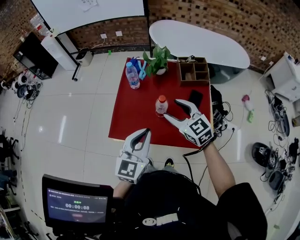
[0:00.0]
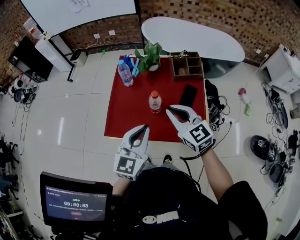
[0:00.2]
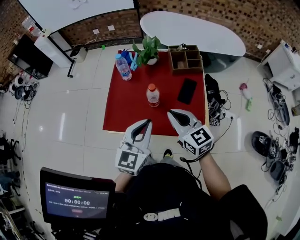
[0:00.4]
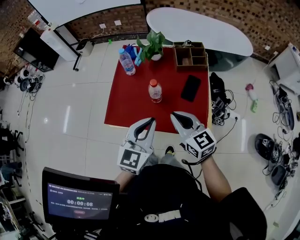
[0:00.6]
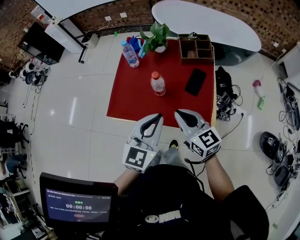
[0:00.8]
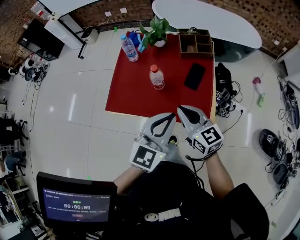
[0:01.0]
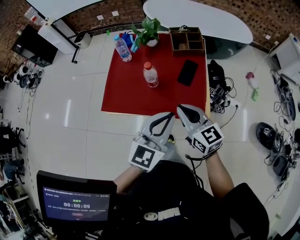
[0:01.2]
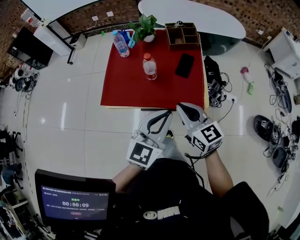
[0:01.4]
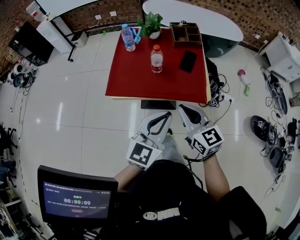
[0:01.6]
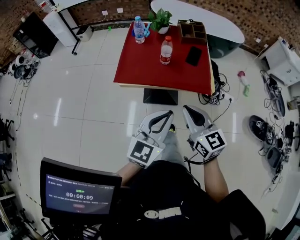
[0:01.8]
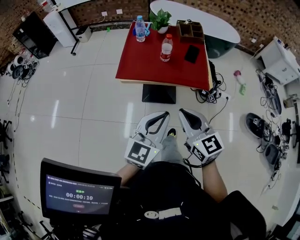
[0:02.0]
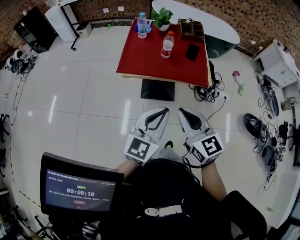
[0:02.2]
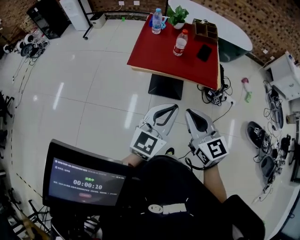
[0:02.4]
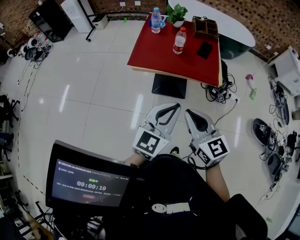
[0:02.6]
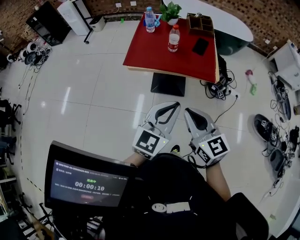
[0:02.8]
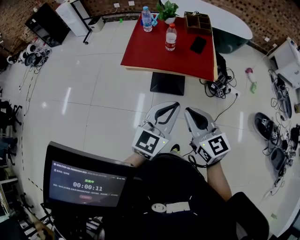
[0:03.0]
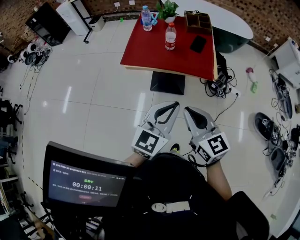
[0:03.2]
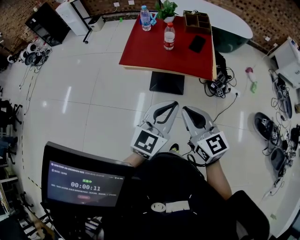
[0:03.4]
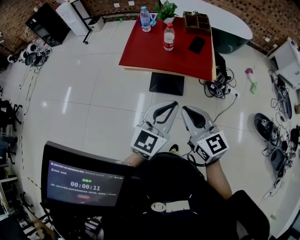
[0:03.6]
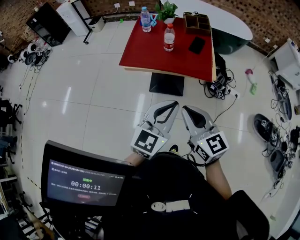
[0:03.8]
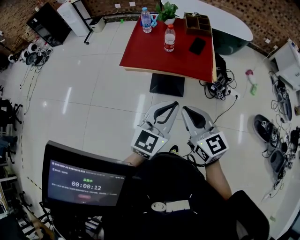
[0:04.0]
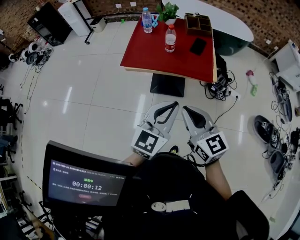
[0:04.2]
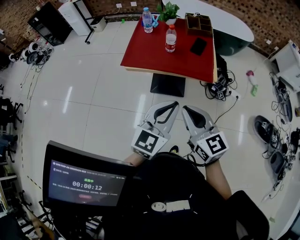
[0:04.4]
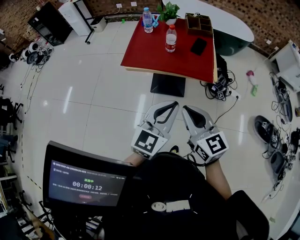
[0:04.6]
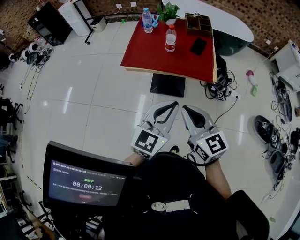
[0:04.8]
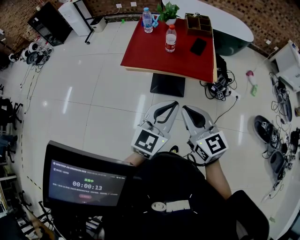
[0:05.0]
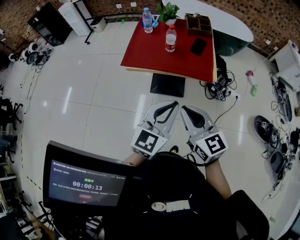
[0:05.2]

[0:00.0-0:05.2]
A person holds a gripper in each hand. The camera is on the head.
0.0 to 1.8 s: Both grippers travel together backward, roughly 30 cm. The right gripper changes its angle by roughly 20 degrees, and closes.
1.8 to 3.4 s: Both grippers move backward, about 10 cm.
3.4 to 5.2 s: Both grippers stay put.

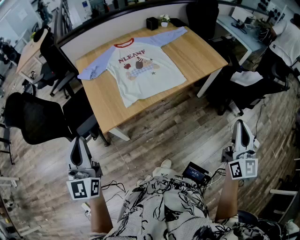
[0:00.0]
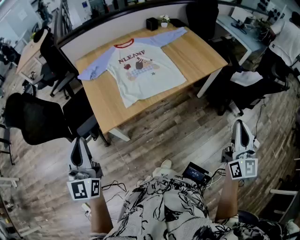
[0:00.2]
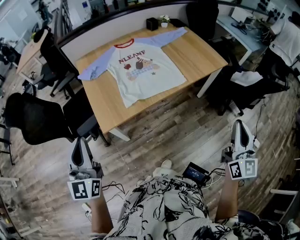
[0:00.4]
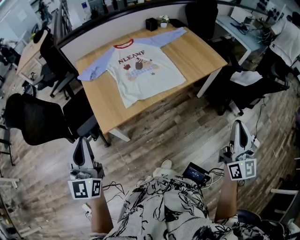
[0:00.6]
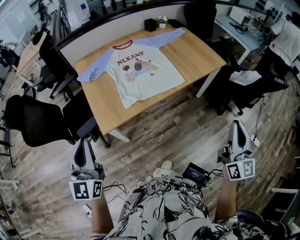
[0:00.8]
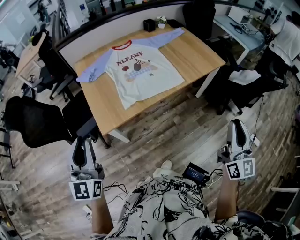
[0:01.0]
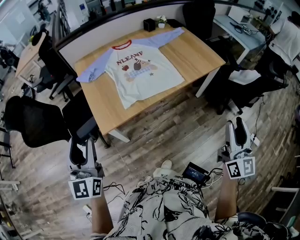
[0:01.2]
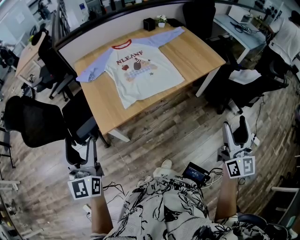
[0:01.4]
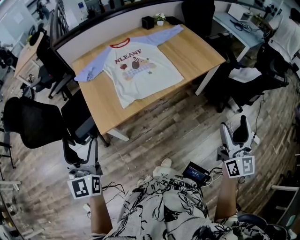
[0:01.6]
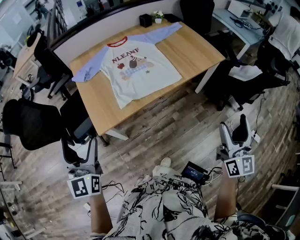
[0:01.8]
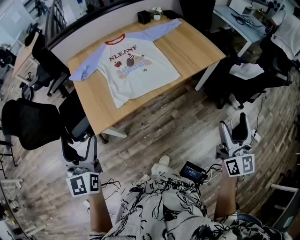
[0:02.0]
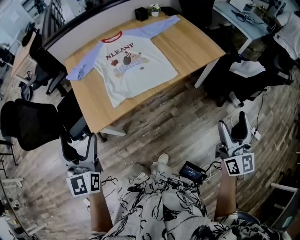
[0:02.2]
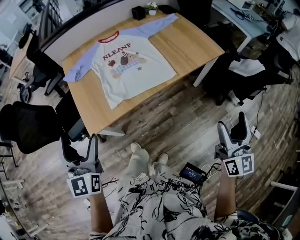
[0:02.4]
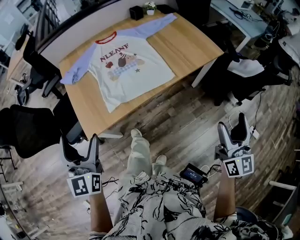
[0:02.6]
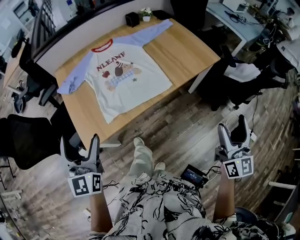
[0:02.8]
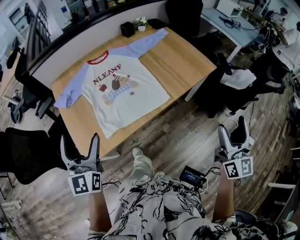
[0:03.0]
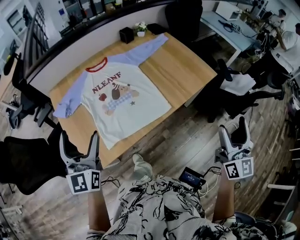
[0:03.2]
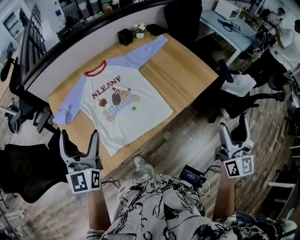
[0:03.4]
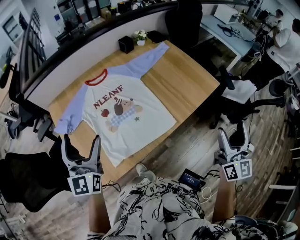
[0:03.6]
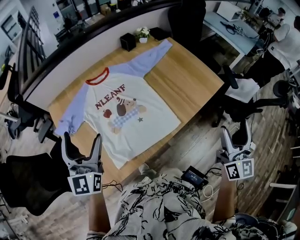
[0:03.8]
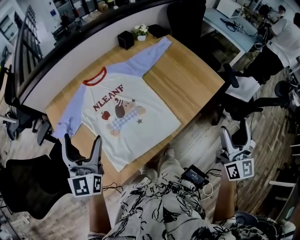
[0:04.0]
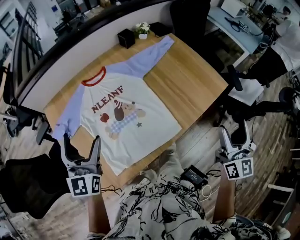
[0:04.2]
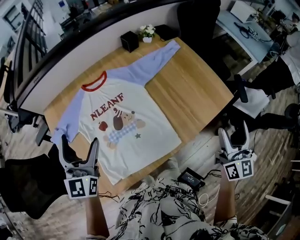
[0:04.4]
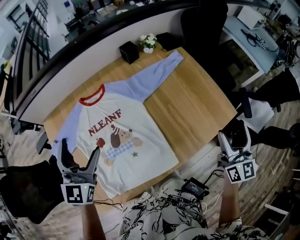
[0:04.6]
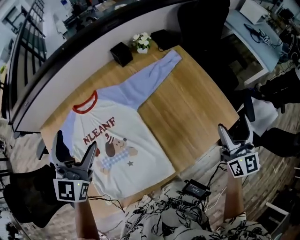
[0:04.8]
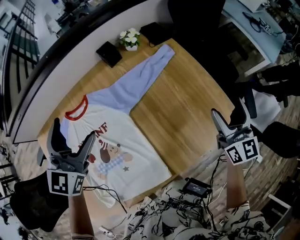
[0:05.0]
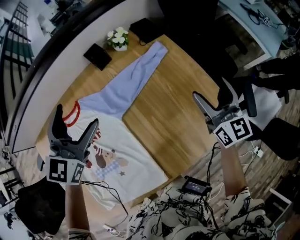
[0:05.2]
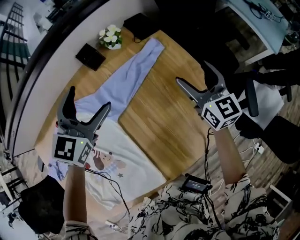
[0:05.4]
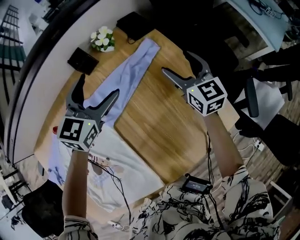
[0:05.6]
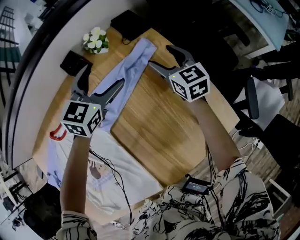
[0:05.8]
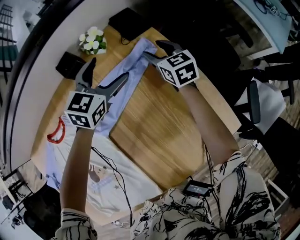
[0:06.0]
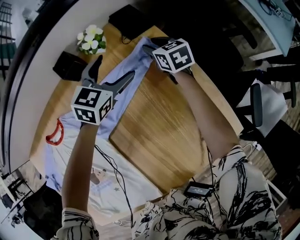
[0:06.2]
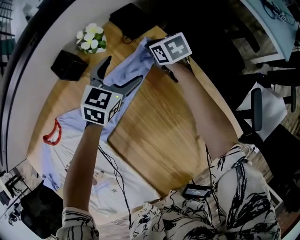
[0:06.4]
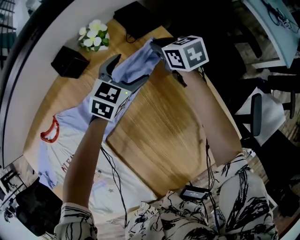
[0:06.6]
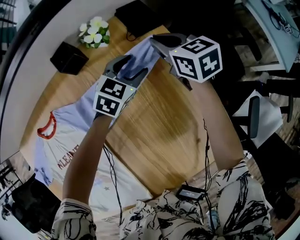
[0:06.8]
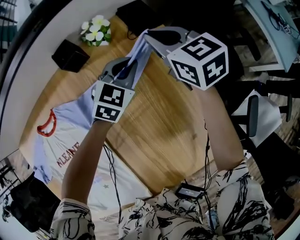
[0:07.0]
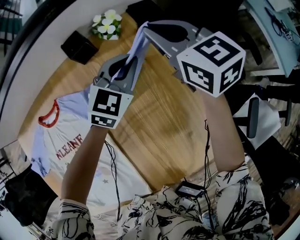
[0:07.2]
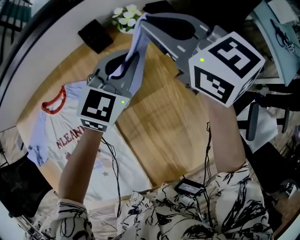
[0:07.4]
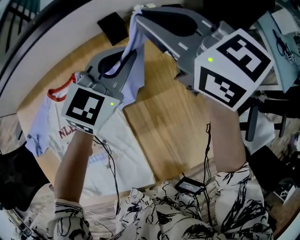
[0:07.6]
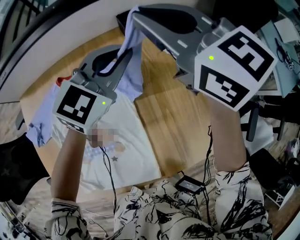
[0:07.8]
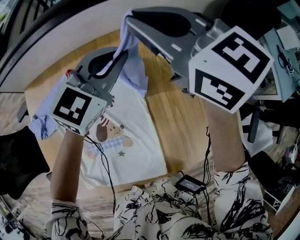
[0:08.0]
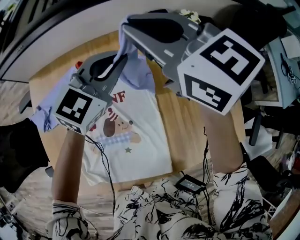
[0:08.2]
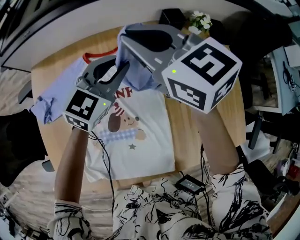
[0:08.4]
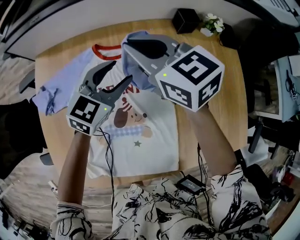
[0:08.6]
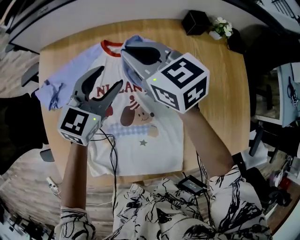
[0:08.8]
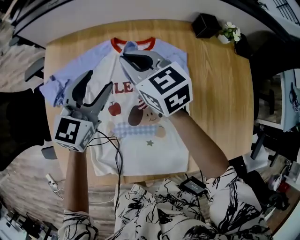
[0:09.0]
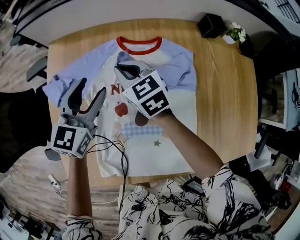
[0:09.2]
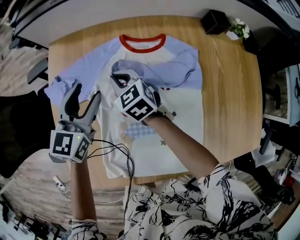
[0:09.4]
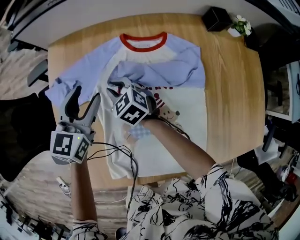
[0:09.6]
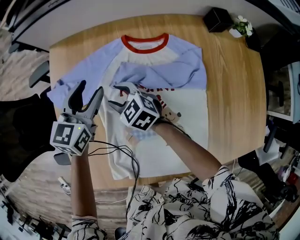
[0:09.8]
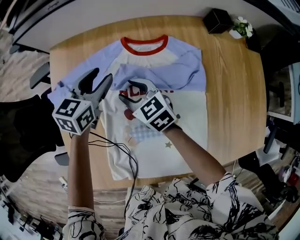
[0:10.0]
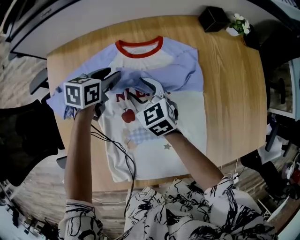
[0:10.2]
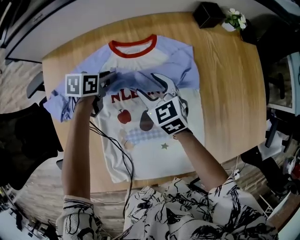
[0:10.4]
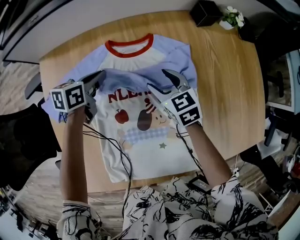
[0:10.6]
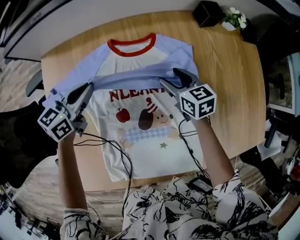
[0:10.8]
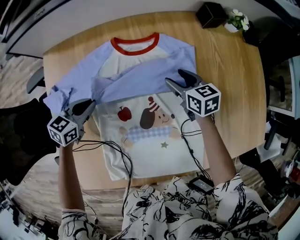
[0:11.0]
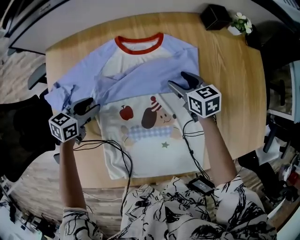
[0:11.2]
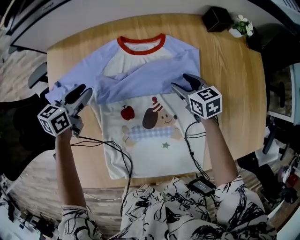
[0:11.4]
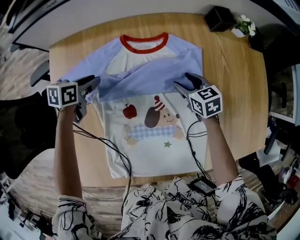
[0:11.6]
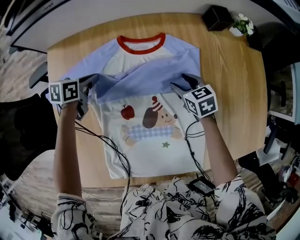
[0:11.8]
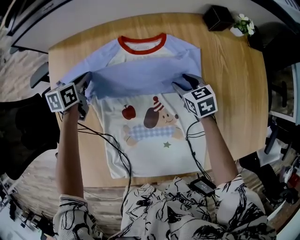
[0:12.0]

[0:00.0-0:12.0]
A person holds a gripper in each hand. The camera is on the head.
0.0 to 1.6 s: The left gripper opens up. The right gripper opens.
1.6 to 3.0 s: The grippers both shift forward and to the right by about 20 cm.
3.0 to 4.4 s: Both grippers travel together forward, some 30 cm.
4.4 to 6.0 s: The pair of grippers is taken forward, some 60 cm. The right gripper is displaced downward by some 30 cm, tilts its fingers about 30 degrees downward, and closes its fingers. The left gripper rotates roughly 40 degrees.
6.0 to 7.6 s: The left gripper travels upward, to the left and backward by approximately 15 cm, and closes. The right gripper travels upward and to the left by some 35 cm, swivels roughly 40 degrees, and closes its fingers.
7.6 to 9.0 s: The pair of grippers is taken to the left, approximately 50 cm. The left gripper swivels roughly 30 degrees, and opens its fingers.
9.0 to 10.4 s: Both grippers travel together downward, roughly 15 cm. The right gripper opens. The left gripper turns by about 50 degrees.
10.4 to 12.0 s: The right gripper moves to the right and downward, about 15 cm; the left gripper is displaced to the left by approximately 10 cm, and moves roughly 15 cm backward and comes back.

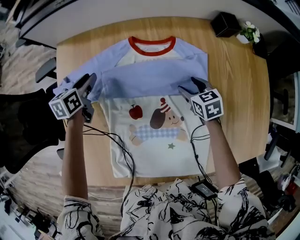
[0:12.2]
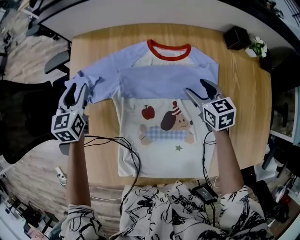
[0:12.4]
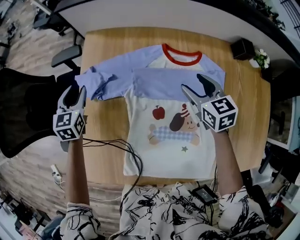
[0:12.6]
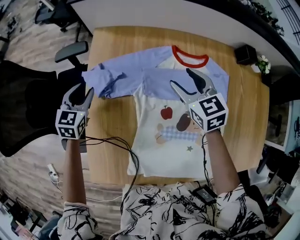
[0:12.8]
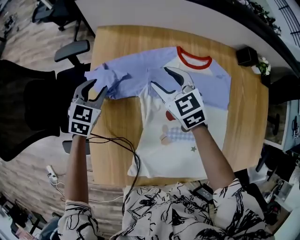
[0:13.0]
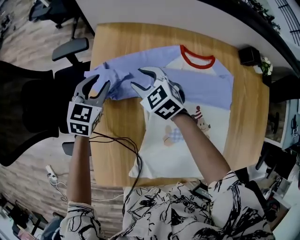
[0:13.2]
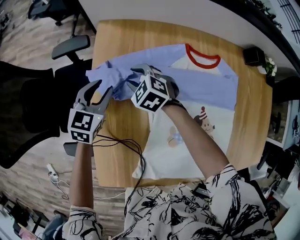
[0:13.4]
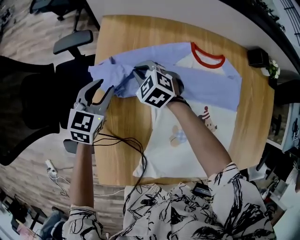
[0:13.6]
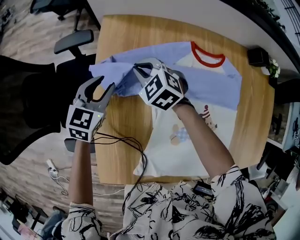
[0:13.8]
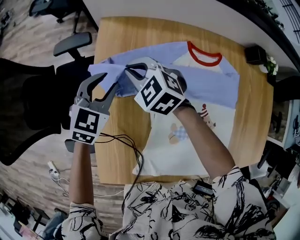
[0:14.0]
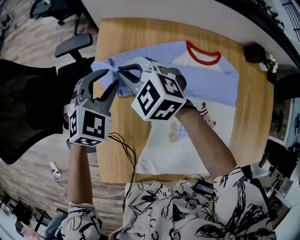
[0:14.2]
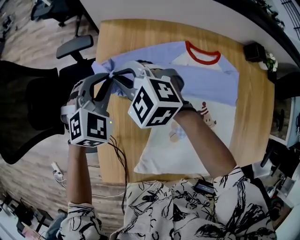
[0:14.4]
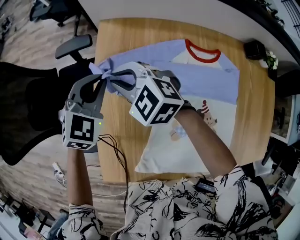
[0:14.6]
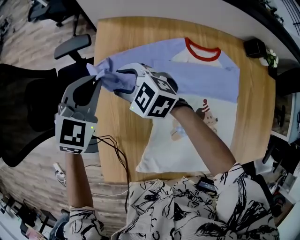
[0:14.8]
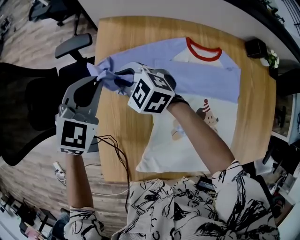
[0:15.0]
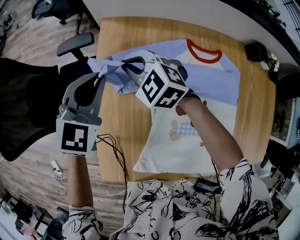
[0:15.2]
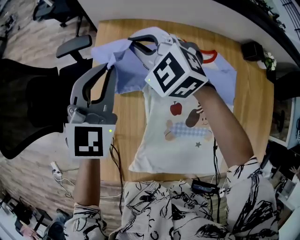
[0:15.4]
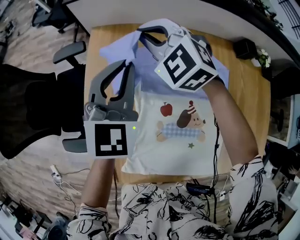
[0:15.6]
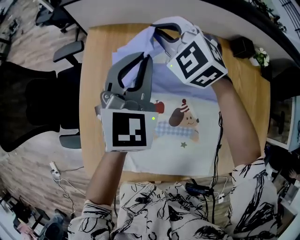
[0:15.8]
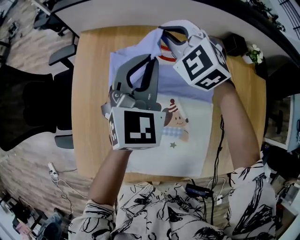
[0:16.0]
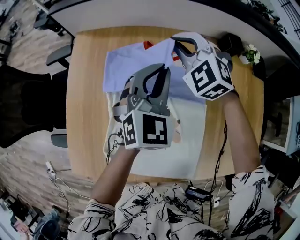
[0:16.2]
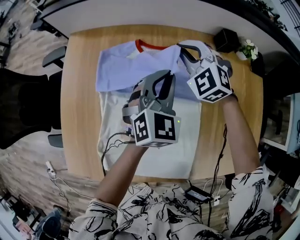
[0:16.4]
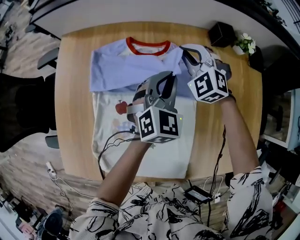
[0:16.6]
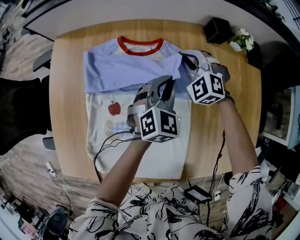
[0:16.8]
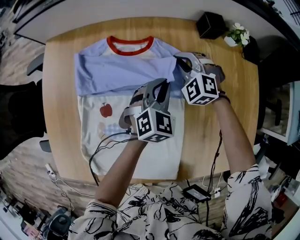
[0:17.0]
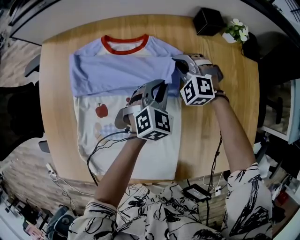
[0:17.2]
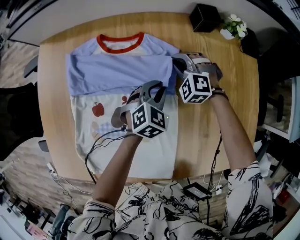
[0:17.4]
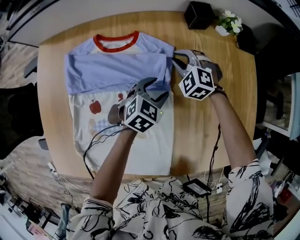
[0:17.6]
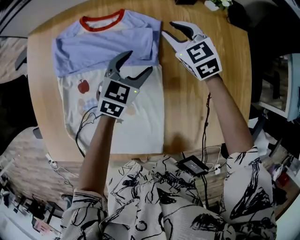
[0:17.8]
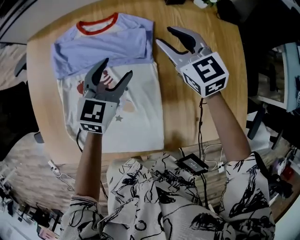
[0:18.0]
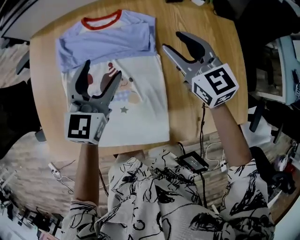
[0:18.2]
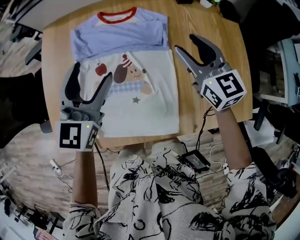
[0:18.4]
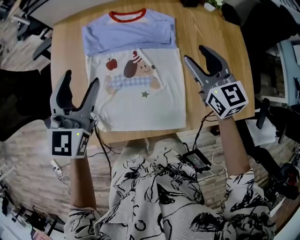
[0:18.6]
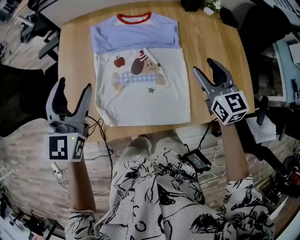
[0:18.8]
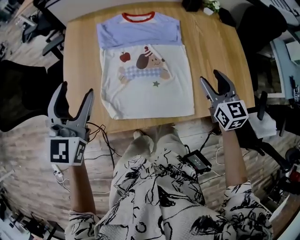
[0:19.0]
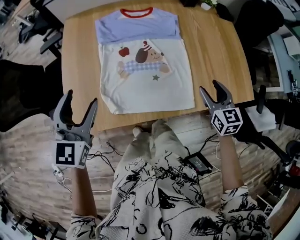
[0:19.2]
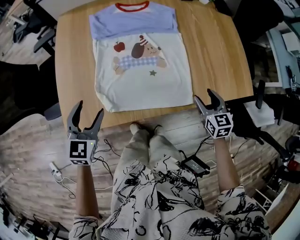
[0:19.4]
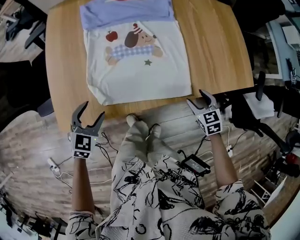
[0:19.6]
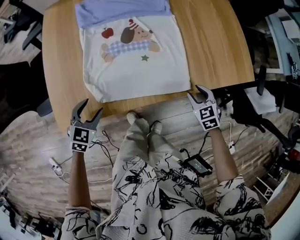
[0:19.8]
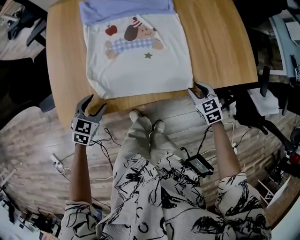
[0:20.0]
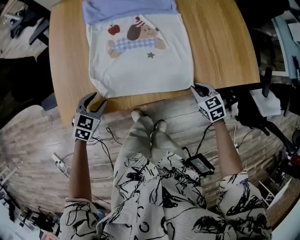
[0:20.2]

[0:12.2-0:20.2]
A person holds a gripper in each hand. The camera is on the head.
12.2 to 13.8 s: The left gripper goes about 15 cm to the left, and changes its angle by about 30 degrees, while the right gripper goes approximately 40 cm to the left, rolls counterclockwise, seen from behind, by roughly 40 degrees, and closes.
13.8 to 15.4 s: The right gripper swings up and down, about 15 cm each way, with 2 reversals, changes its angle by about 20 degrees, and opens and closes again, while the left gripper goes approximately 20 cm upward, and changes its angle by about 30 degrees.
15.4 to 17.0 s: The two grippers travel together, to the right, some 50 cm. The left gripper turns by approximately 20 degrees. The right gripper rotates approximately 20 degrees.
17.0 to 18.6 s: The right gripper heads backward and upward, covering about 30 cm, twists about 60 degrees clockwise, seen from behind, and opens its fingers, while the left gripper is displaced to the left, backward and upward by about 40 cm, turns by about 30 degrees, and opens.
18.6 to 20.2 s: The right gripper heads backward and downward, covering approximately 35 cm, points its fingers some 40 degrees further downward, and closes its fingers. Meanwhile the left gripper travels downward and backward by about 35 cm, and points its fingers roughly 40 degrees further downward.
